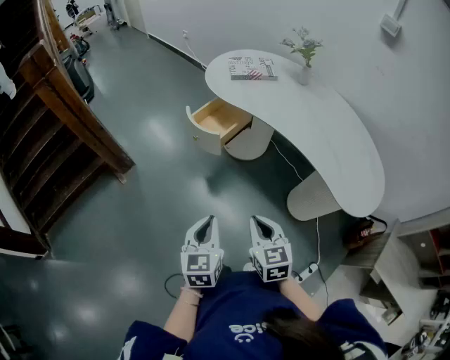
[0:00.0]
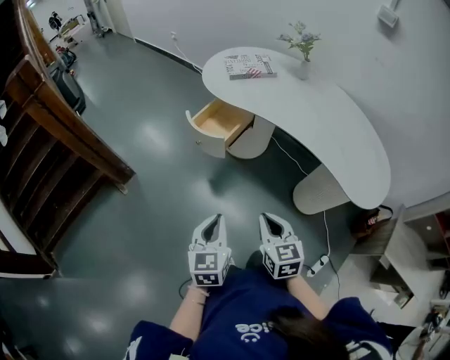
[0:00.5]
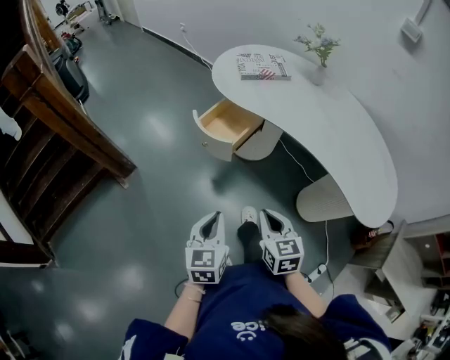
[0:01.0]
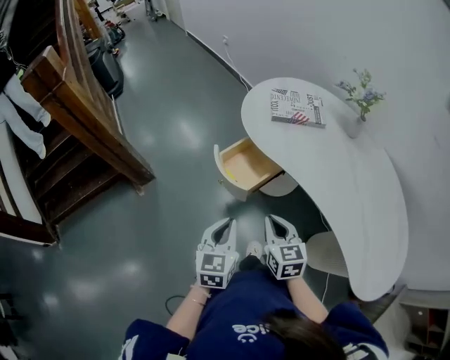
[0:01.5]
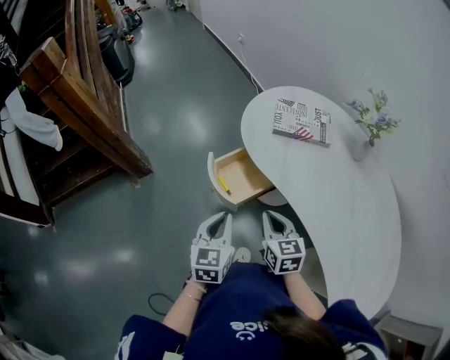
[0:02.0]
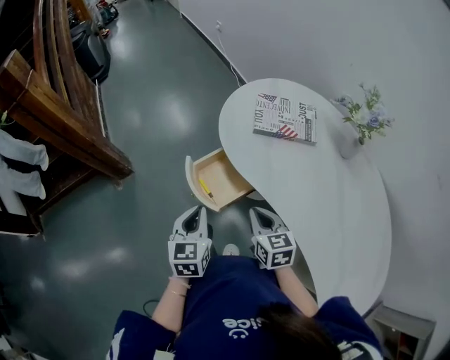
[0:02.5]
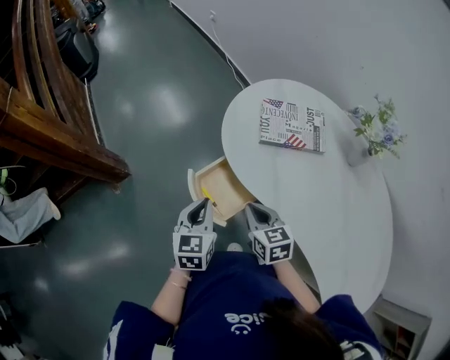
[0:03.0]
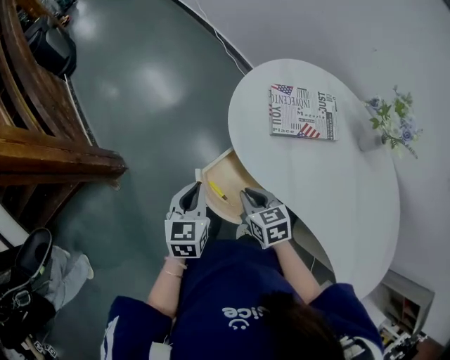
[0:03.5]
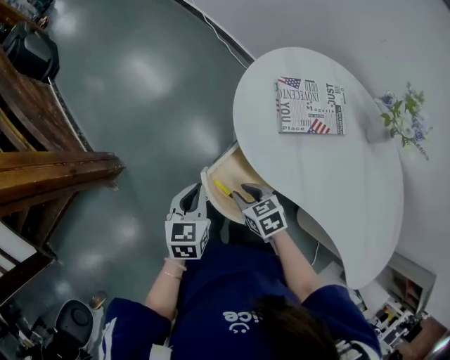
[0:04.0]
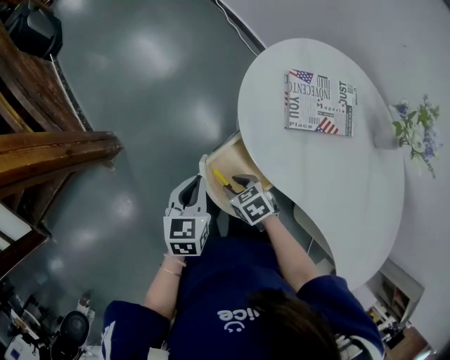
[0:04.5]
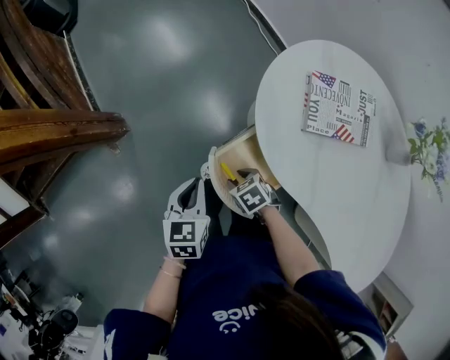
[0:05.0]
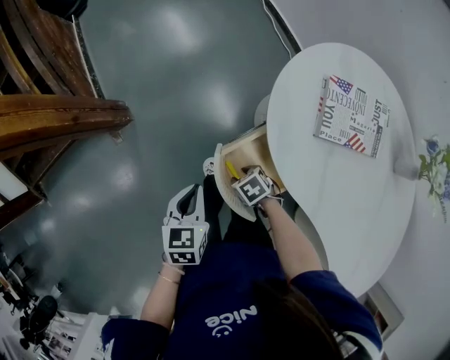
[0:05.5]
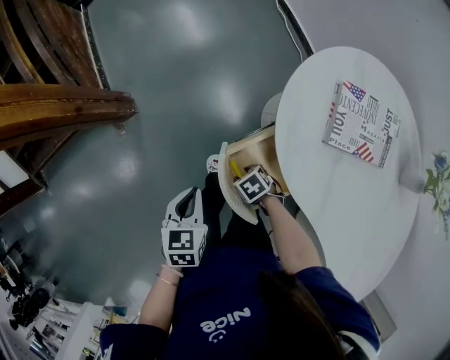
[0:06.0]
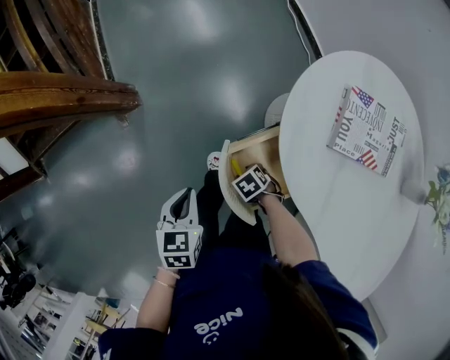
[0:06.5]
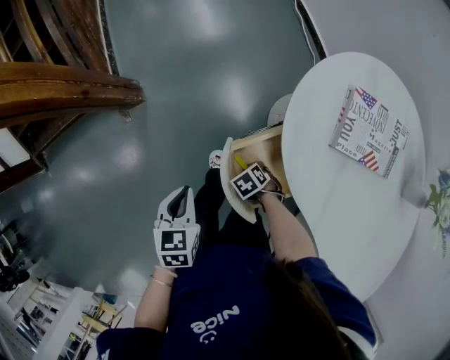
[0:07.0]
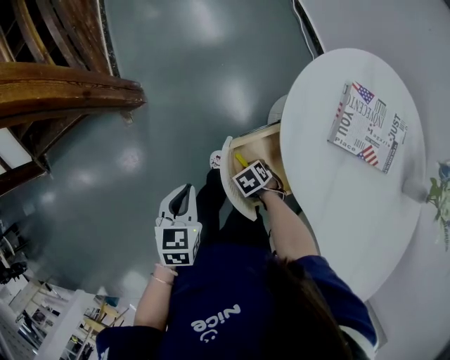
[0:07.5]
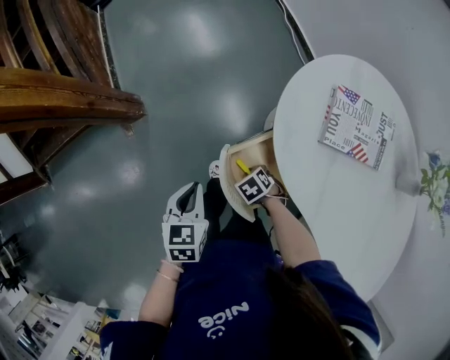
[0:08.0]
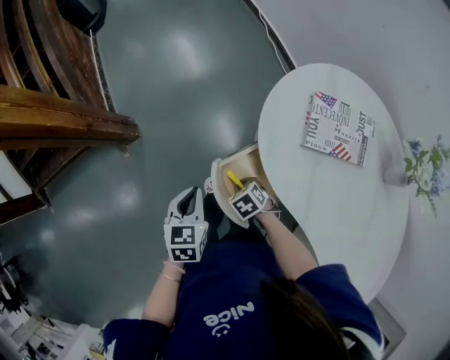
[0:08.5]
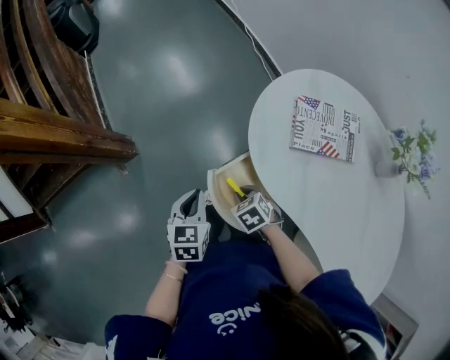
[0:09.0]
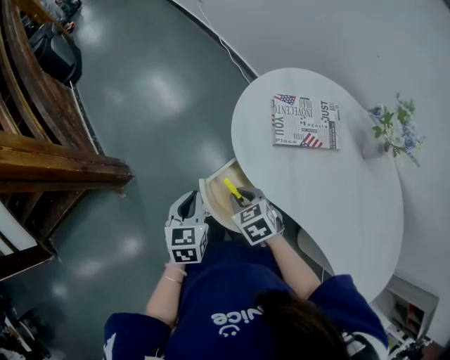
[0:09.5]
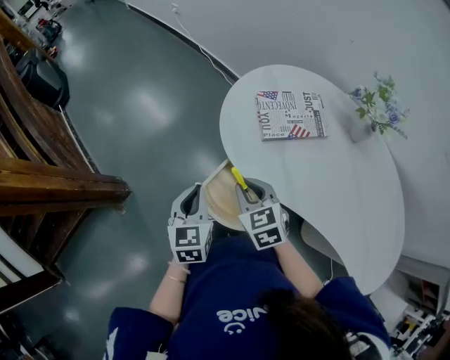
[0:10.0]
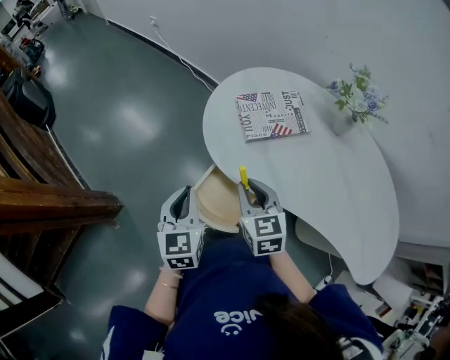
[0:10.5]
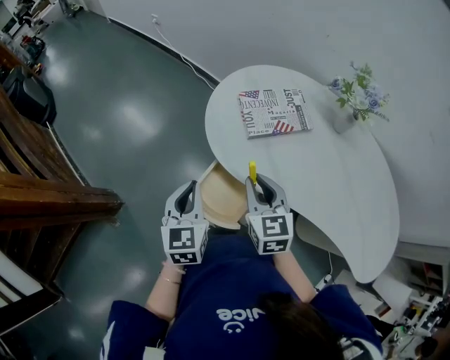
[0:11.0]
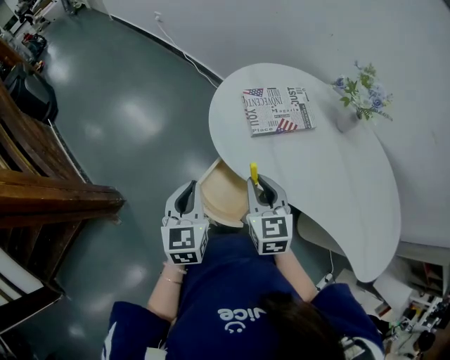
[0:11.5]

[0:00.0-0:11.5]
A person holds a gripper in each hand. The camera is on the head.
0:00.0 to 0:02.0: Both grippers travel together forward, approximately 35 cm.
0:02.0 to 0:04.0: The right gripper shifts about 25 cm forward, downward and to the left, swivels roughly 30 degrees, and opens up; the left gripper is displaced forward by roughly 25 cm, and rotates roughly 20 degrees.
0:04.0 to 0:06.0: The left gripper moves roughly 10 cm, and swivels about 20 degrees. The right gripper is displaced downward by about 15 cm, and changes its angle by approximately 40 degrees.
0:06.0 to 0:07.5: The right gripper closes.
0:07.5 to 0:09.5: The right gripper travels upward by about 25 cm, and turns by some 40 degrees, while the left gripper shifts by roughly 10 cm.
0:09.5 to 0:11.5: The left gripper is displaced upward by about 5 cm. The right gripper shifts about 10 cm upward, and swivels about 40 degrees.

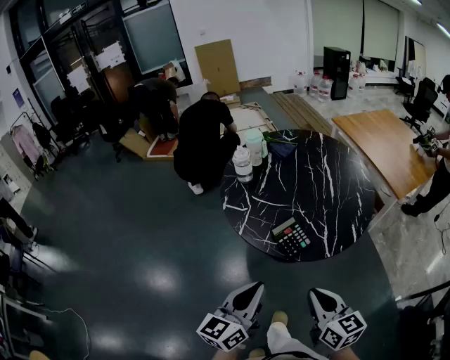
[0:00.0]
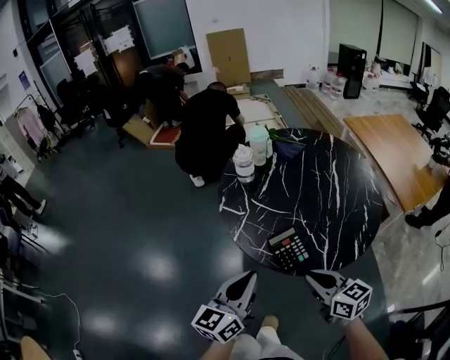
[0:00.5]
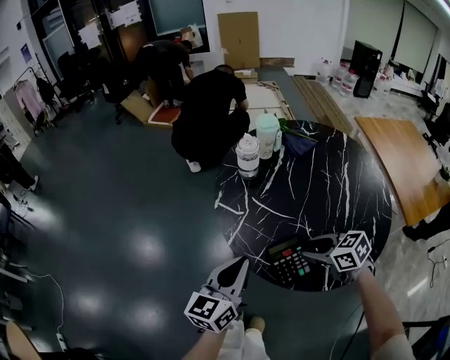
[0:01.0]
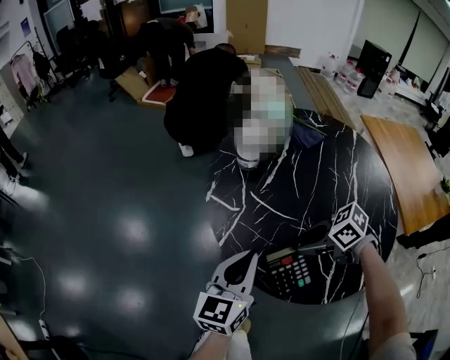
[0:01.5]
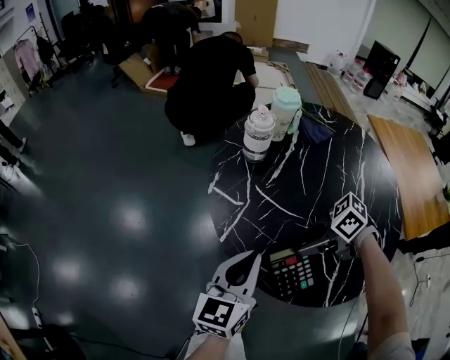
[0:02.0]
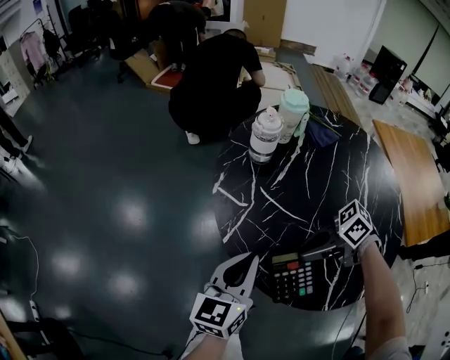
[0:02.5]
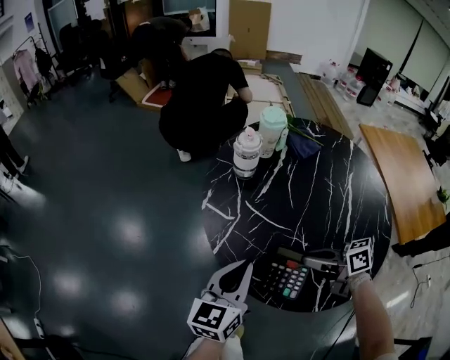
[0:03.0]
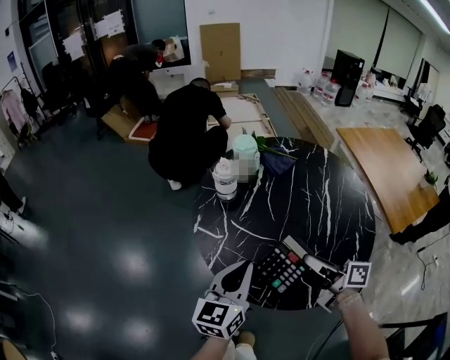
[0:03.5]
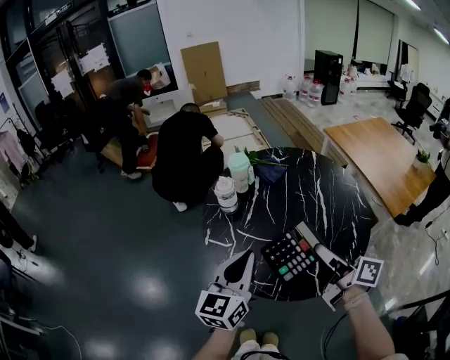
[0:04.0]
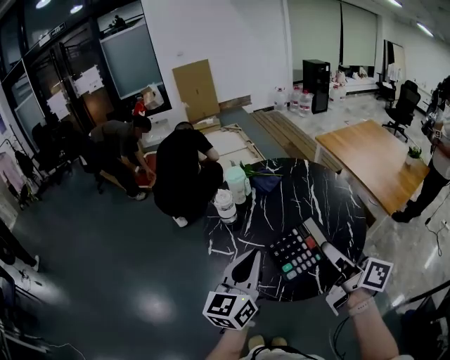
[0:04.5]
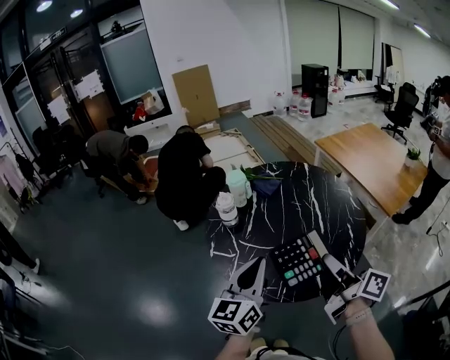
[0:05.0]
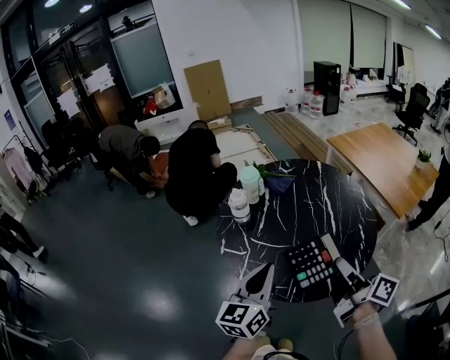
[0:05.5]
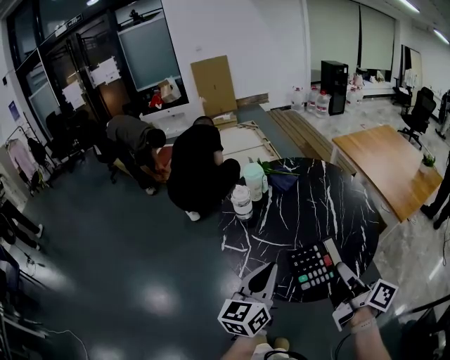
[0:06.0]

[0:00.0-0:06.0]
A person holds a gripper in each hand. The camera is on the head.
0:00.0 to 0:02.0: The right gripper changes place by approximately 35 cm, rotates some 90 degrees, and opens its fingers. The left gripper changes place by some 25 cm.
0:02.0 to 0:04.0: Both grippers travel together upward, roughly 20 cm. The right gripper tips its fingers upward by about 40 degrees, and closes.
0:04.0 to 0:06.0: The right gripper moves backward, some 5 cm.

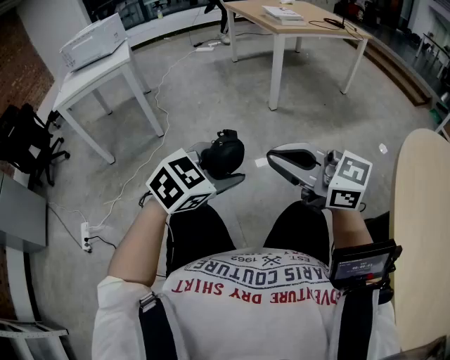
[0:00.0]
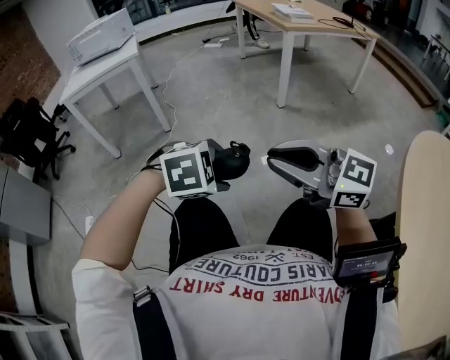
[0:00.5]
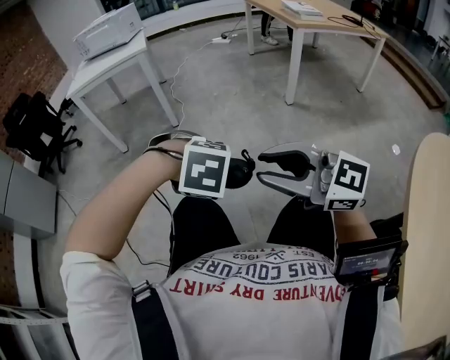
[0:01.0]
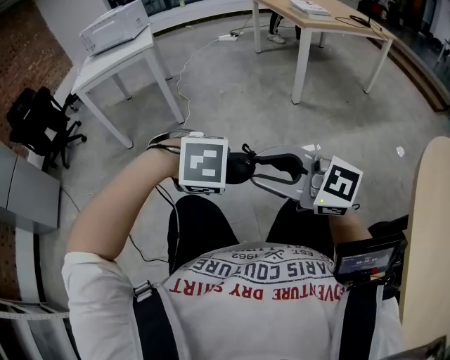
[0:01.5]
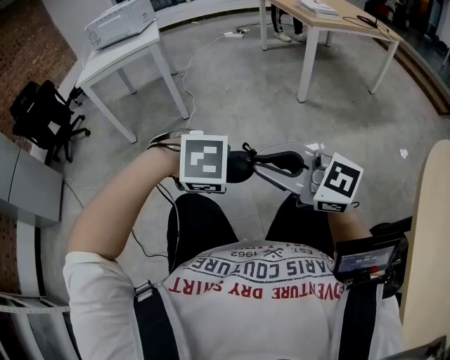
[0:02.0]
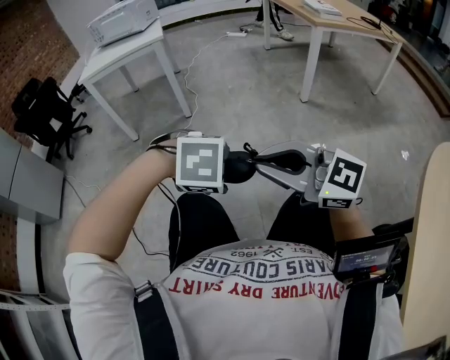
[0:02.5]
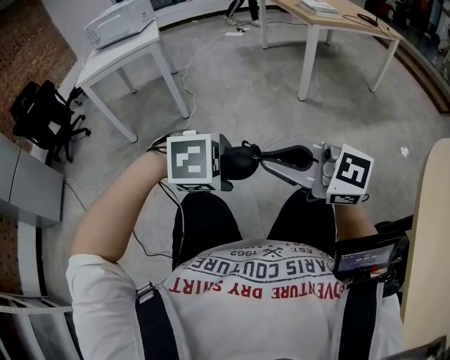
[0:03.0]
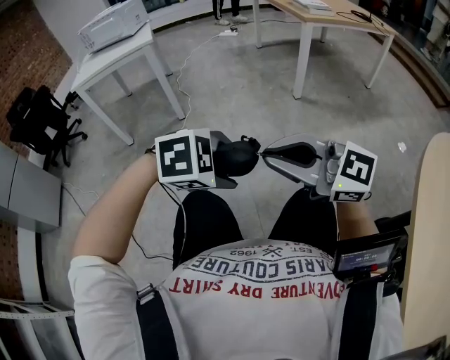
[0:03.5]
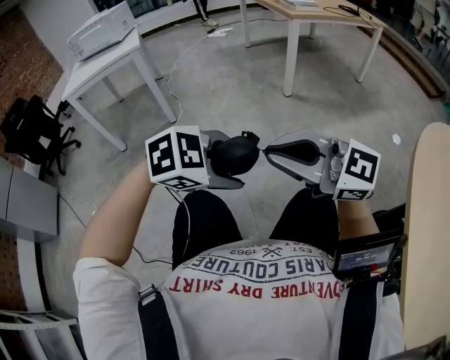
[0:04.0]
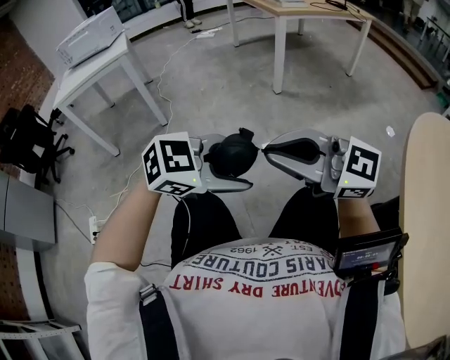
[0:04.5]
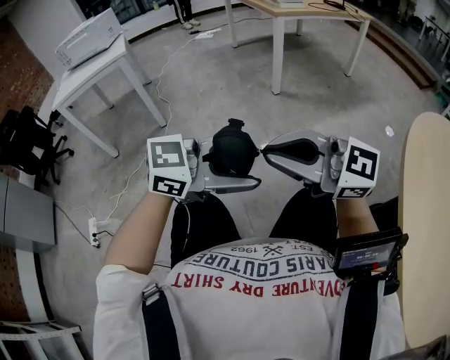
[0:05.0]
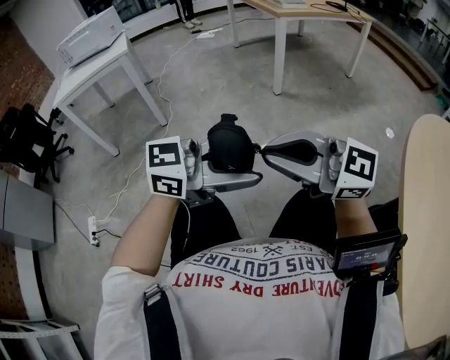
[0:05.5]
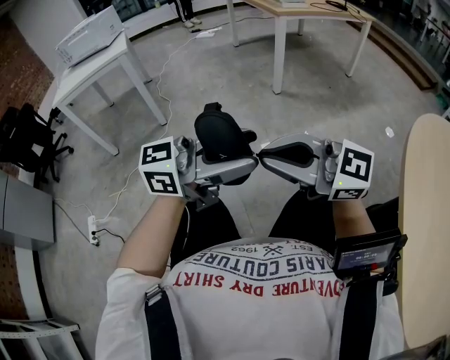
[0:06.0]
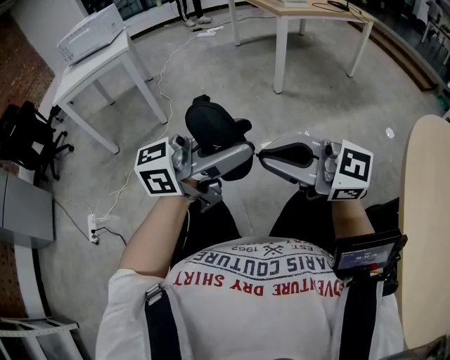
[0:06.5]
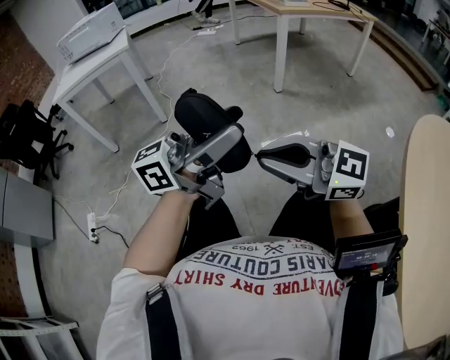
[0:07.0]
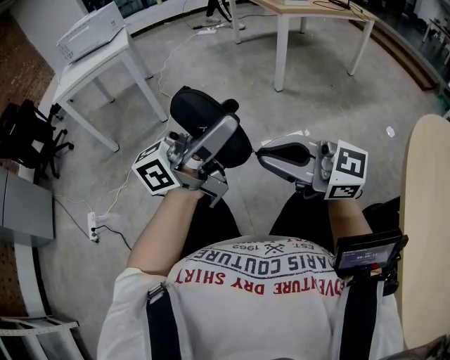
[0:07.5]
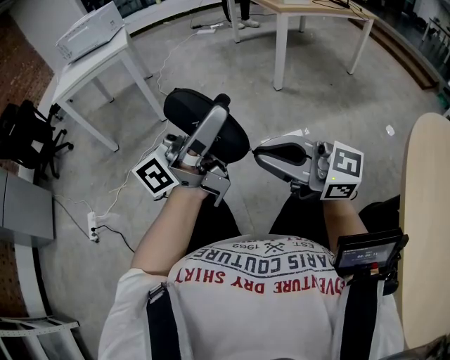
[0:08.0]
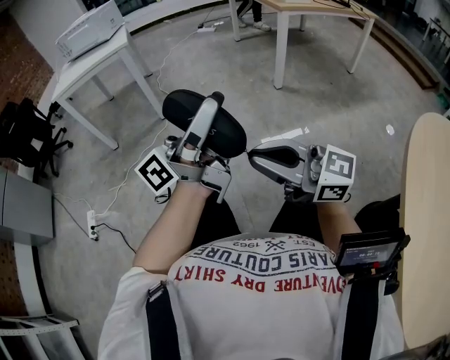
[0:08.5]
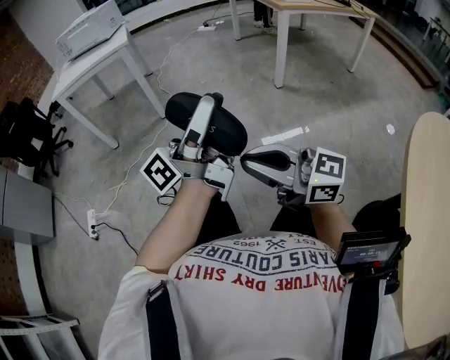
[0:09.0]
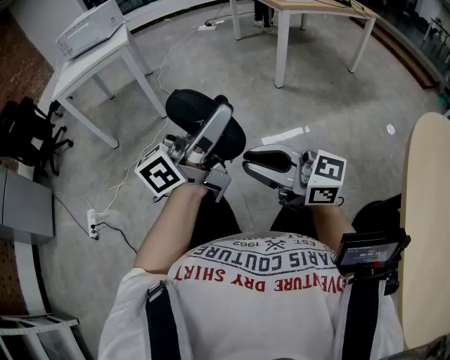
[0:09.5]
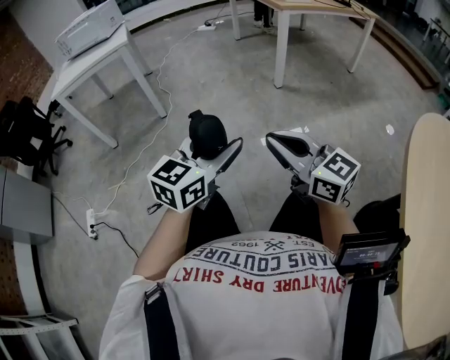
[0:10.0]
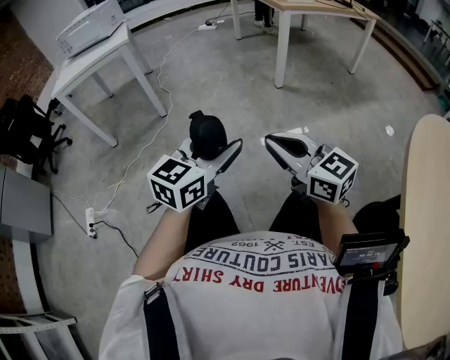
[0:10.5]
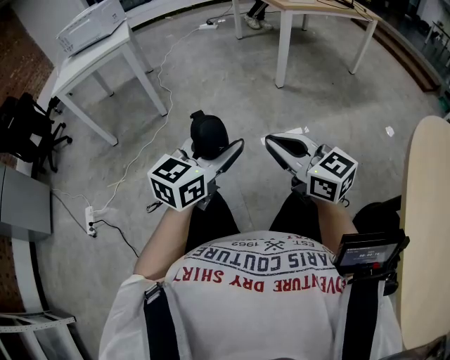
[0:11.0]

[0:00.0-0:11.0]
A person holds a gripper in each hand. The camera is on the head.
0:00.0 to 0:02.0: The left gripper ends up some 10 cm from where it was, and points its fingers roughly 50 degrees further downward. Meanwhile the right gripper changes place by roughly 10 cm, and opens, then closes once more.
0:02.0 to 0:03.5: There are only small adjustments of the grippers.
0:03.5 to 0:05.5: The left gripper shifts by approximately 10 cm, and angles its fingers upward, by approximately 60 degrees.
0:05.5 to 0:07.5: The left gripper heads upward, covering approximately 5 cm, and angles its fingers upward, by approximately 30 degrees.
0:07.5 to 0:09.0: The left gripper ends up approximately 5 cm from where it was, and changes its angle by about 30 degrees.
0:09.0 to 0:11.0: The right gripper travels to the right and forward by some 10 cm, and swivels roughly 30 degrees. Meanwhile the left gripper goes some 10 cm downward, and angles its fingers downward, by approximately 50 degrees.
